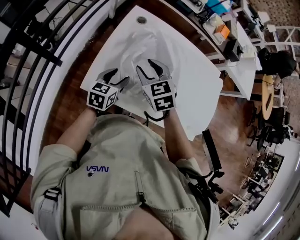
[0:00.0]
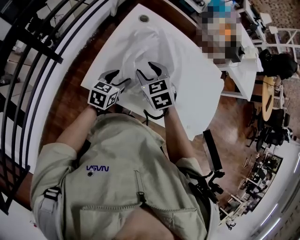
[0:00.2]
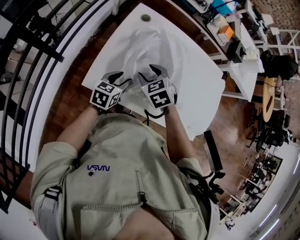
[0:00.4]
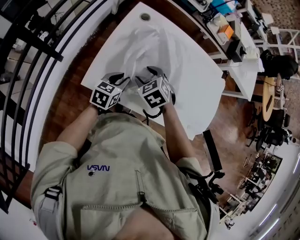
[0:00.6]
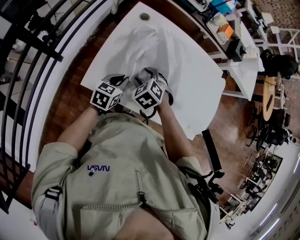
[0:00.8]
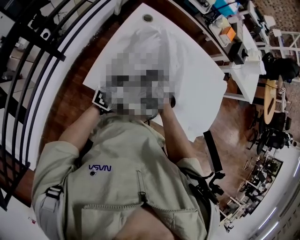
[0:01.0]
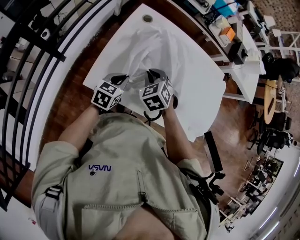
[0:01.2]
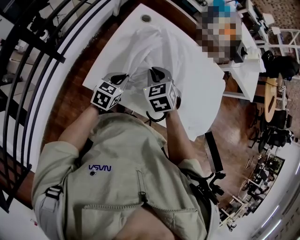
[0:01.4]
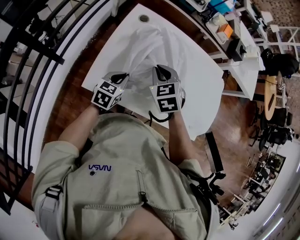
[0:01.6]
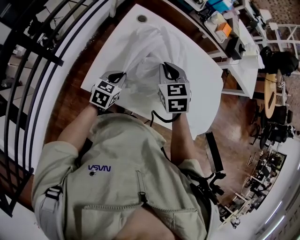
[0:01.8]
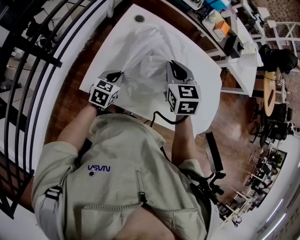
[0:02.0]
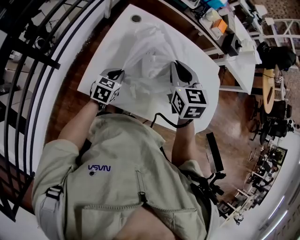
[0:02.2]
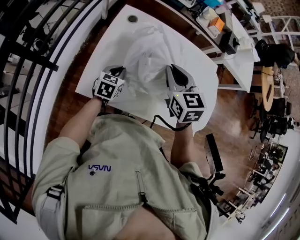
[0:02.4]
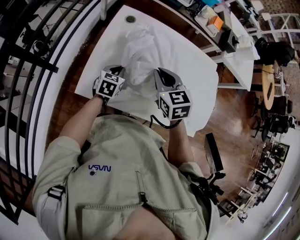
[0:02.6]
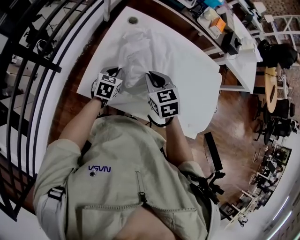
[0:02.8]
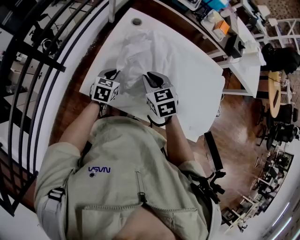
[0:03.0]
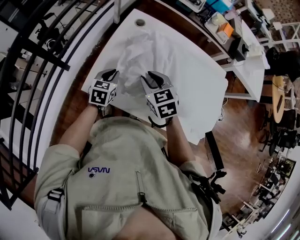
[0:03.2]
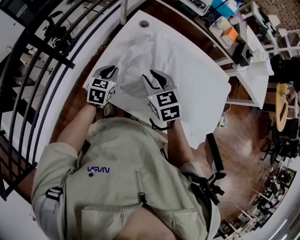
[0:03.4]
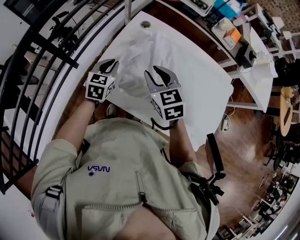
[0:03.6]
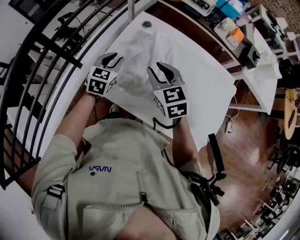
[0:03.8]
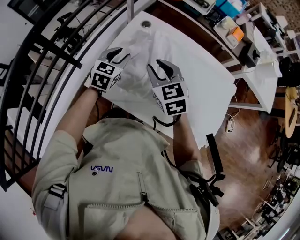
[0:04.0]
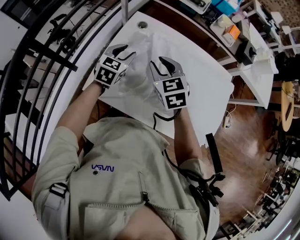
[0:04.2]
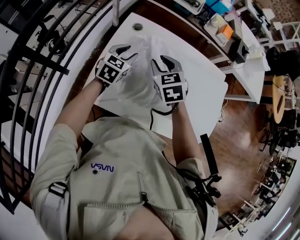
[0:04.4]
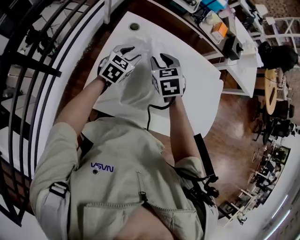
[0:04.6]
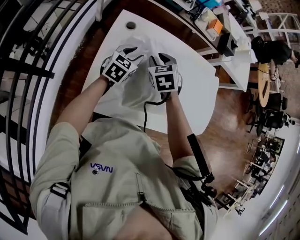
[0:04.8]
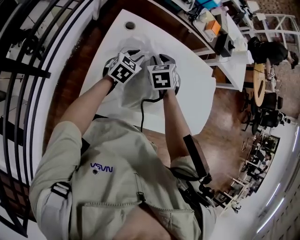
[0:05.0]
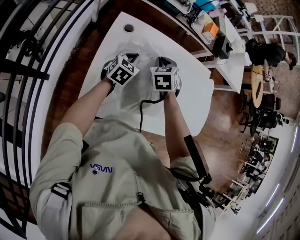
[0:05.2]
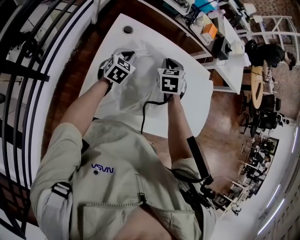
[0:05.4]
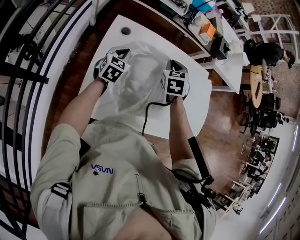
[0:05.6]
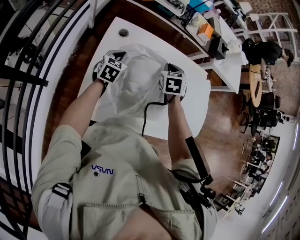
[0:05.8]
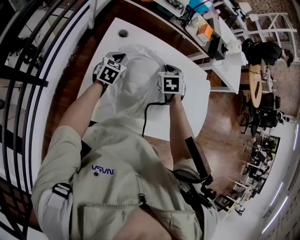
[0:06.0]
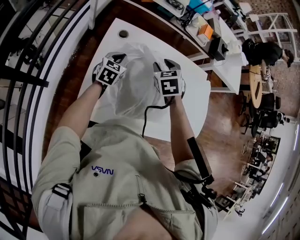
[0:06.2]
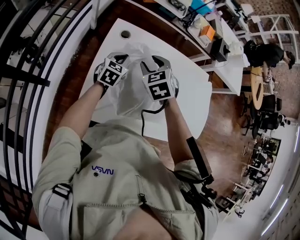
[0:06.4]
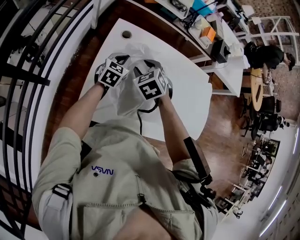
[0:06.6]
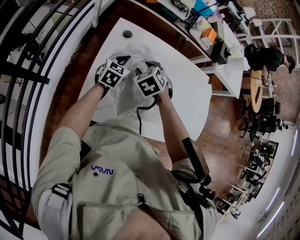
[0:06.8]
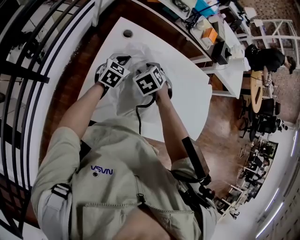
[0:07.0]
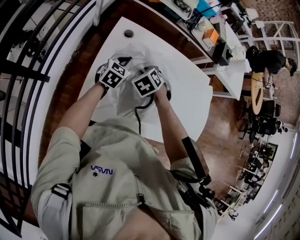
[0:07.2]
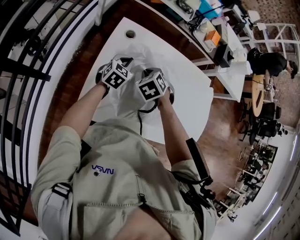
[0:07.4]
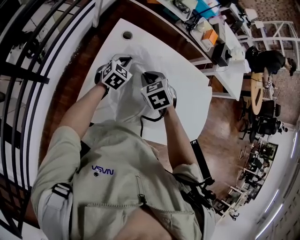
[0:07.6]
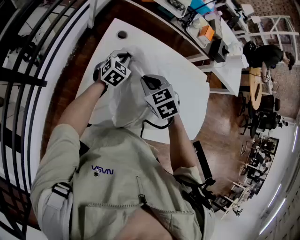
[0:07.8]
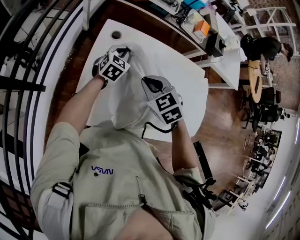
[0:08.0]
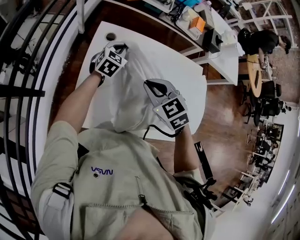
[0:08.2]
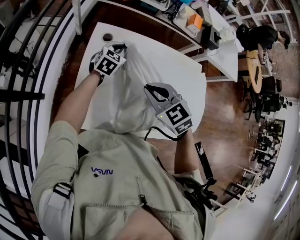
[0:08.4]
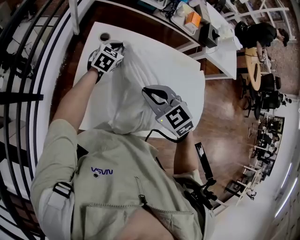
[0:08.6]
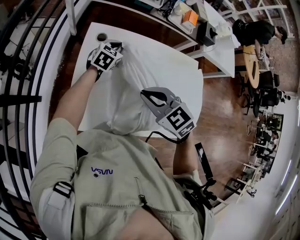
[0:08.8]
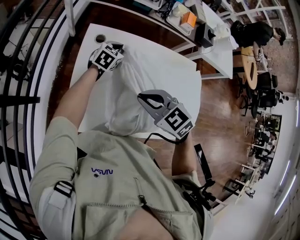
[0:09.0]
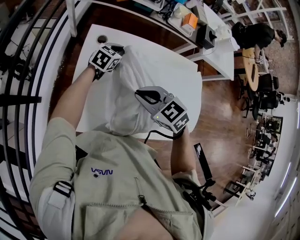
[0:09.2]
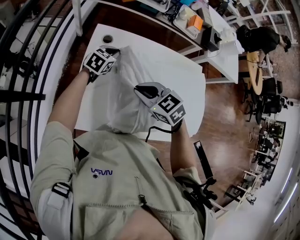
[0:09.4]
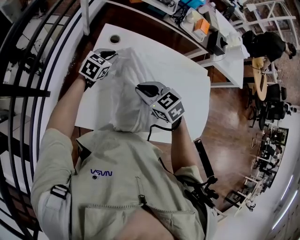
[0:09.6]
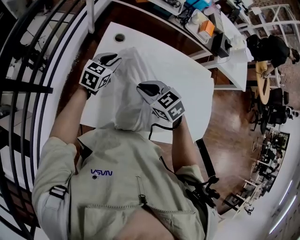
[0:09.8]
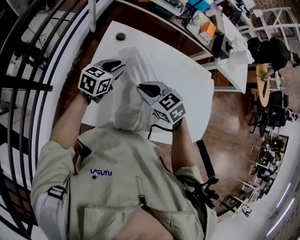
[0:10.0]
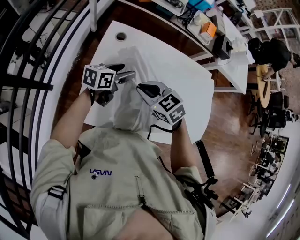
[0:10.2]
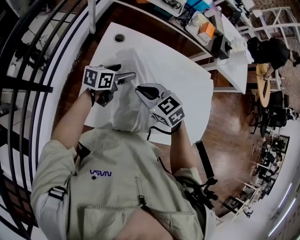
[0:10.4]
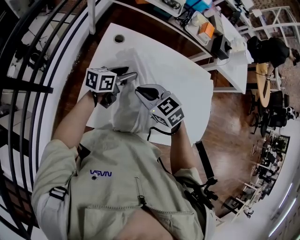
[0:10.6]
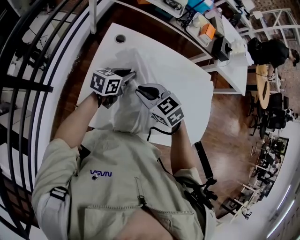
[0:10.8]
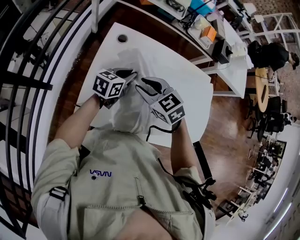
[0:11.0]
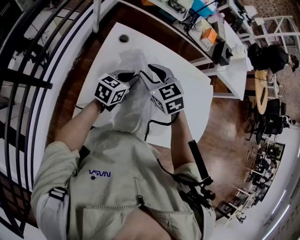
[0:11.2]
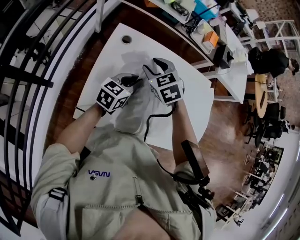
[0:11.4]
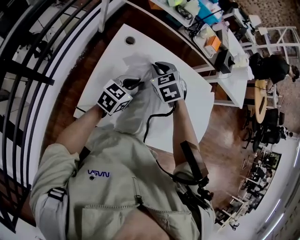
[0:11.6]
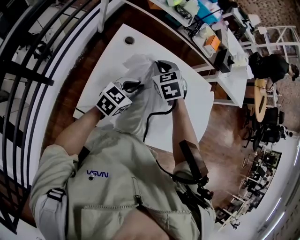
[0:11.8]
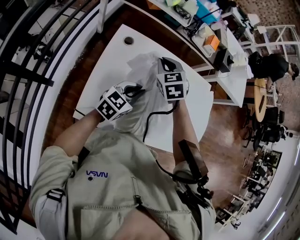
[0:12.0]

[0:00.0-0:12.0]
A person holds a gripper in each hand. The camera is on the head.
0:00.0 to 0:01.6: The right gripper travels downward and back again, some 10 cm each way, and closes, while the left gripper closes up.
0:01.6 to 0:03.0: The right gripper reaches some 10 cm upward, then returns.
0:03.0 to 0:04.4: The right gripper heads forward, covering approximately 10 cm, while the left gripper heads forward and upward, covering some 15 cm, and opens up.
0:04.4 to 0:06.0: The right gripper heads forward, to the right and downward, covering approximately 15 cm, swivels about 30 degrees, and closes its fingers. The left gripper travels forward and downward by about 10 cm, and closes its fingers.
0:06.0 to 0:07.6: The right gripper shifts approximately 15 cm to the left and backward, turns by roughly 30 degrees, and opens and closes again.
0:07.6 to 0:09.0: The right gripper is displaced backward and upward by some 15 cm, and rotates about 20 degrees. Meanwhile the left gripper travels forward and to the right by some 10 cm.
0:09.0 to 0:10.4: The left gripper travels backward and to the left by approximately 15 cm, rotates about 40 degrees, and opens; the right gripper is displaced downward by roughly 5 cm.
0:10.4 to 0:12.0: The right gripper shifts approximately 15 cm forward, rotates some 30 degrees, and opens, then closes again. Meanwhile the left gripper heads backward and to the right, covering about 10 cm, rotates some 30 degrees, and closes its fingers.

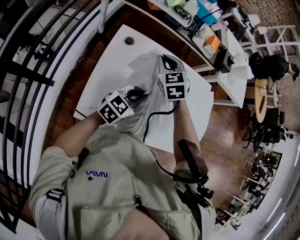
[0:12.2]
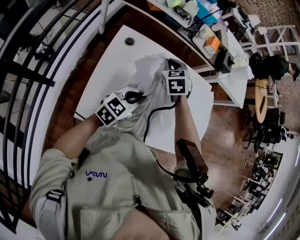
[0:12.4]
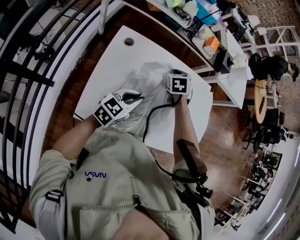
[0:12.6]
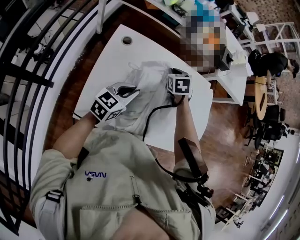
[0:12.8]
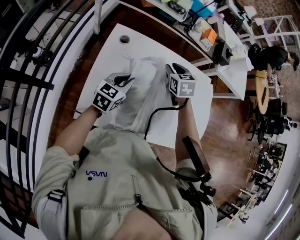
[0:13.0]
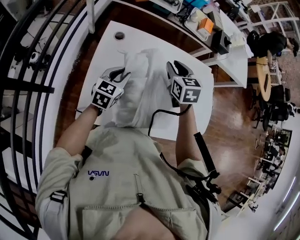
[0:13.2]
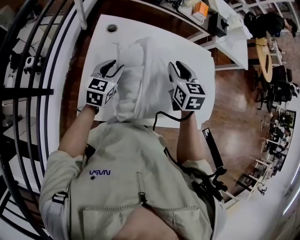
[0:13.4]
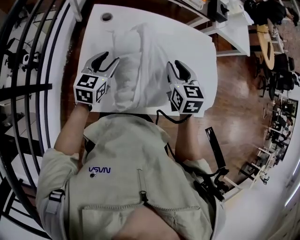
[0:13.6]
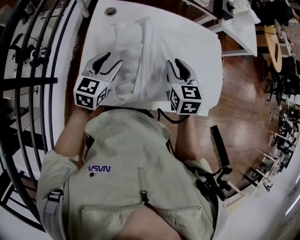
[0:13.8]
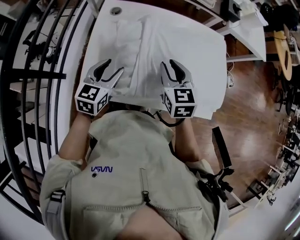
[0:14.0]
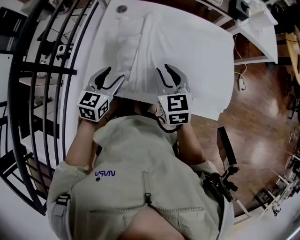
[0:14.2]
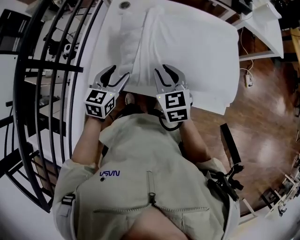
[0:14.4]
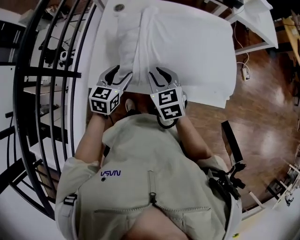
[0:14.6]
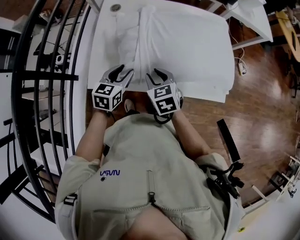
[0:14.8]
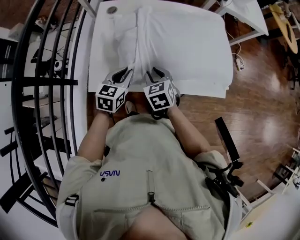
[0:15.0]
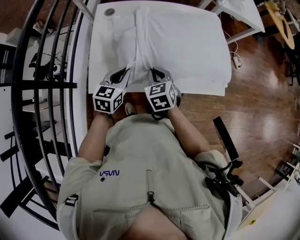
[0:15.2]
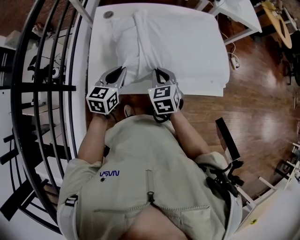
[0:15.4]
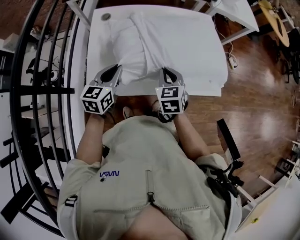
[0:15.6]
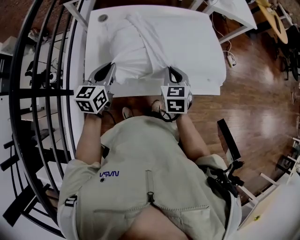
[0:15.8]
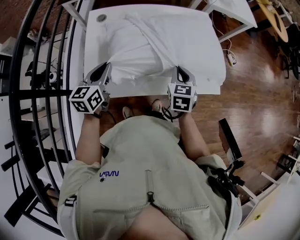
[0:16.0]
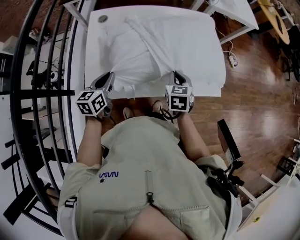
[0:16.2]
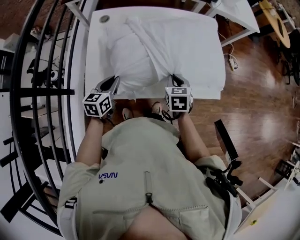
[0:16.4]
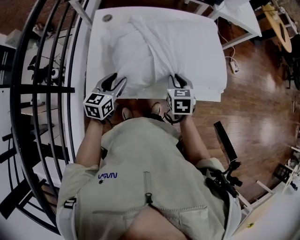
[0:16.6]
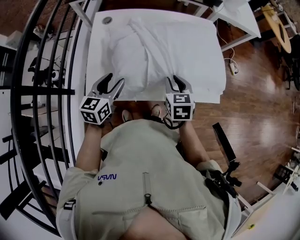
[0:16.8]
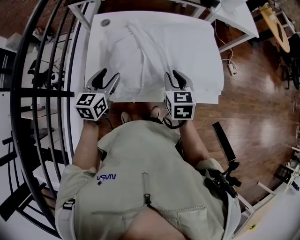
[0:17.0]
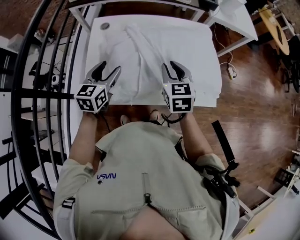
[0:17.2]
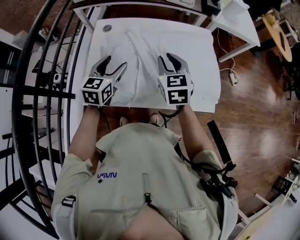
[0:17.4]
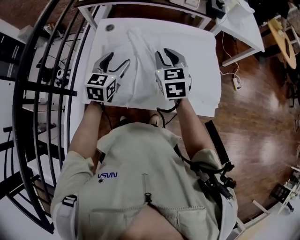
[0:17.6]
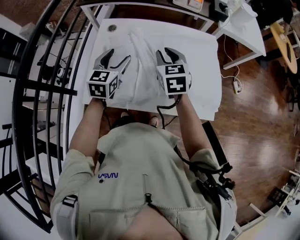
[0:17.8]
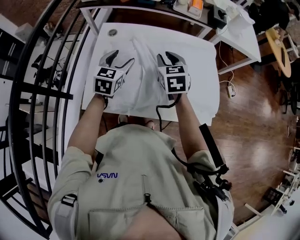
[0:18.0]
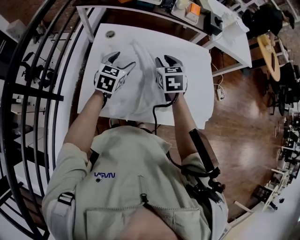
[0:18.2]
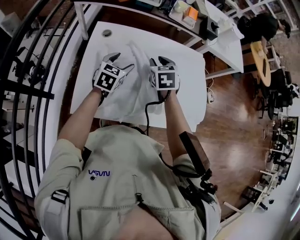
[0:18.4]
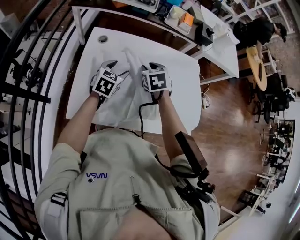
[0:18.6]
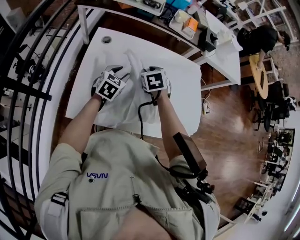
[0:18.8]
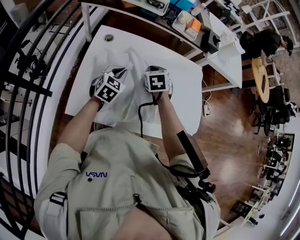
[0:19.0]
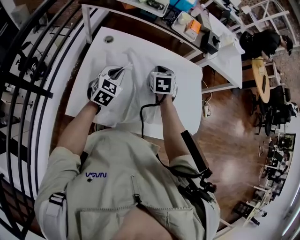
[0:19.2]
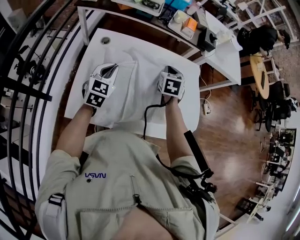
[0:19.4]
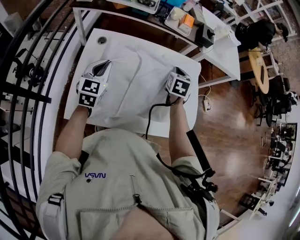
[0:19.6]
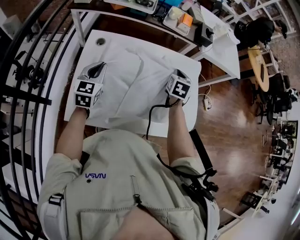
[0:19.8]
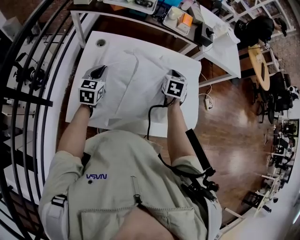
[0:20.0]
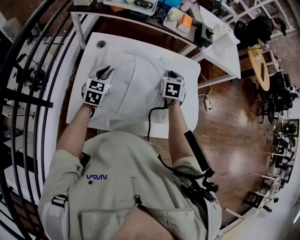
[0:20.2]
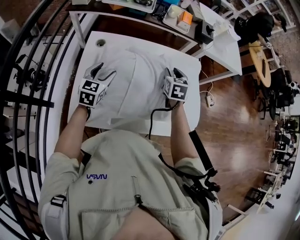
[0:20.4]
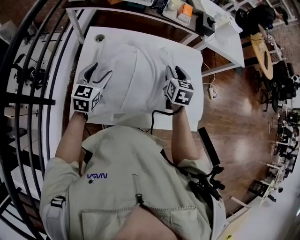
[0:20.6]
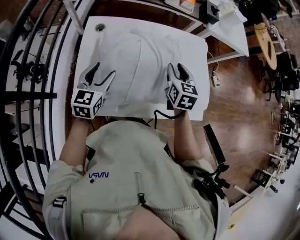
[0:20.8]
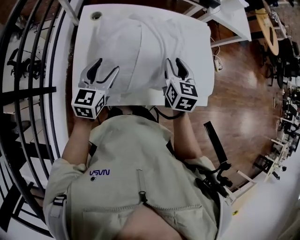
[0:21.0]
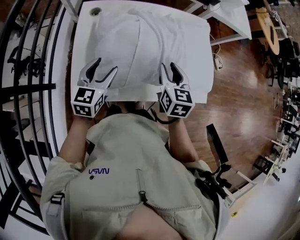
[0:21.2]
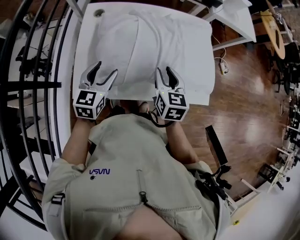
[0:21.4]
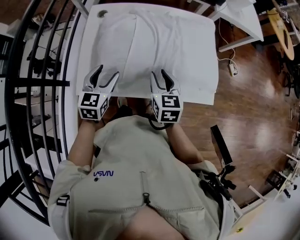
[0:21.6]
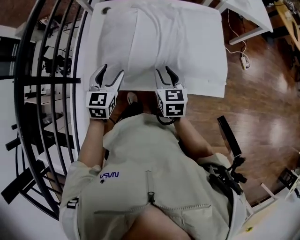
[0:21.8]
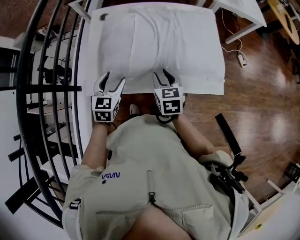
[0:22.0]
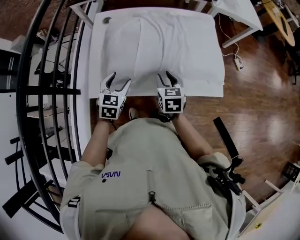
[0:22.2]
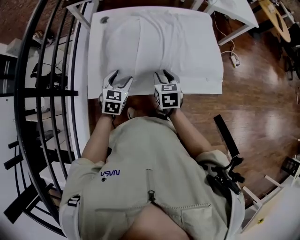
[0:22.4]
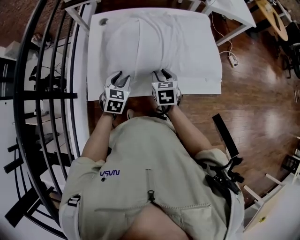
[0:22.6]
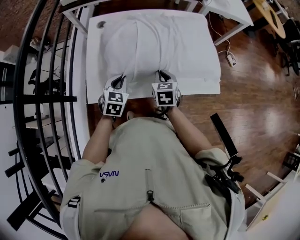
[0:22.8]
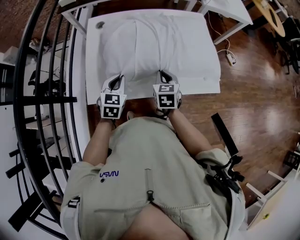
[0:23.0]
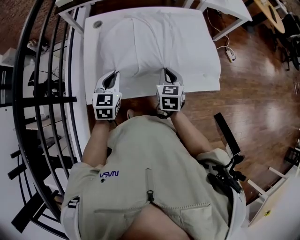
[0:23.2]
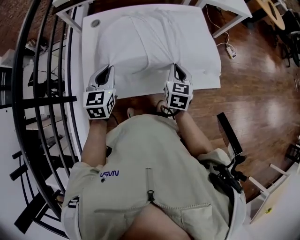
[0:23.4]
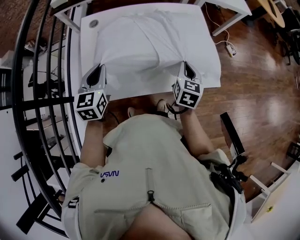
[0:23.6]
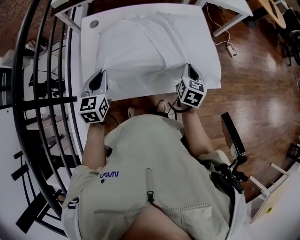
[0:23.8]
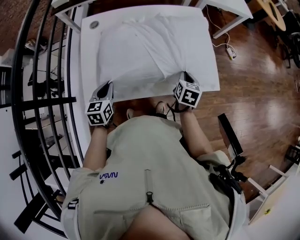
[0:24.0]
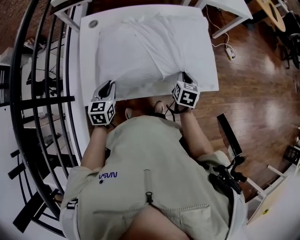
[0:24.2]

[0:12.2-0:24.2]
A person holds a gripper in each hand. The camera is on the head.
0:12.2 to 0:13.8: The right gripper goes about 20 cm to the right and backward, swivels some 30 degrees, and opens up; the left gripper travels to the left by approximately 10 cm, and opens.
0:13.8 to 0:15.2: The left gripper moves backward, downward and to the right, approximately 15 cm, and closes its fingers; the right gripper moves backward and downward, approximately 15 cm, and closes its fingers.
0:15.2 to 0:16.6: The left gripper goes upward and returns, about 5 cm each way, and opens; the right gripper heads to the right, covering about 10 cm.
0:16.6 to 0:18.2: The left gripper is displaced forward by some 20 cm, and opens, while the right gripper heads forward, upward and to the left, covering about 20 cm.
0:18.2 to 0:19.8: The left gripper heads to the left, covering about 5 cm, and closes. Meanwhile the right gripper shifts approximately 15 cm to the right and forward, rotates some 30 degrees, and closes.
0:19.8 to 0:21.2: The right gripper is displaced backward by some 20 cm, and opens up. The left gripper shifts approximately 10 cm backward and to the right, and opens.
0:21.2 to 0:22.6: Both grippers move downward and backward, approximately 10 cm. The left gripper rotates roughly 20 degrees, and closes up.
0:22.6 to 0:24.2: The right gripper goes roughly 15 cm to the right, changes its angle by roughly 20 degrees, and closes up; the left gripper goes upward and returns, about 15 cm each way, and closes up.
